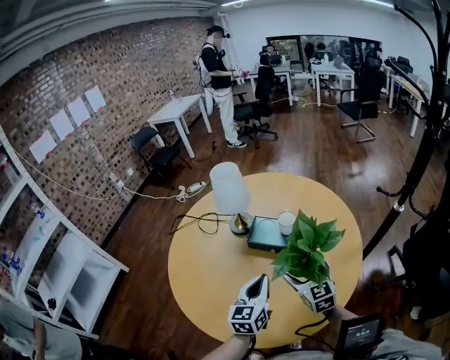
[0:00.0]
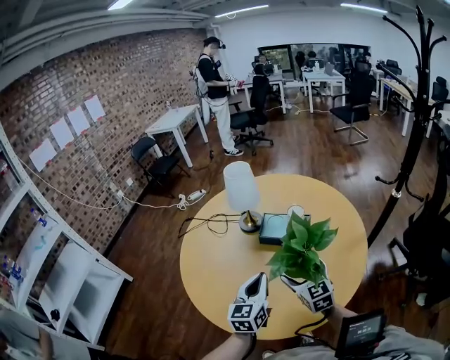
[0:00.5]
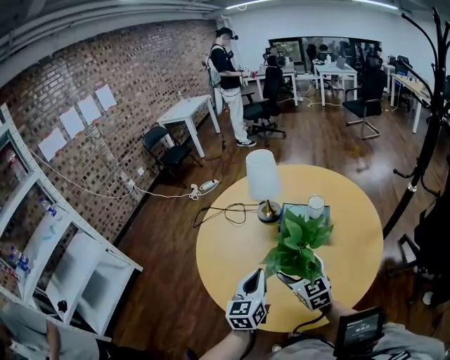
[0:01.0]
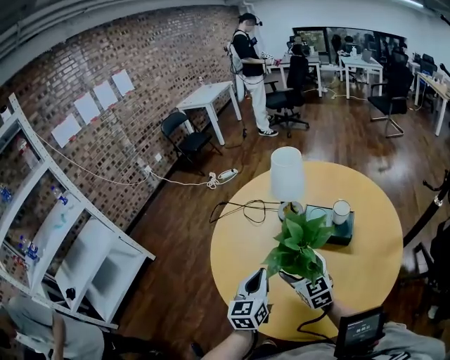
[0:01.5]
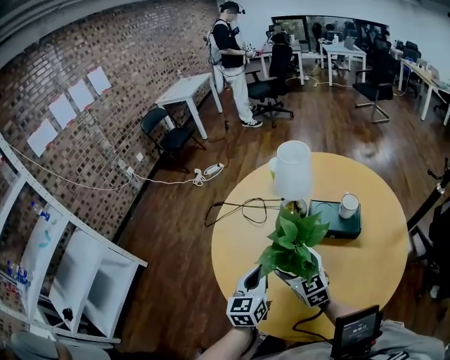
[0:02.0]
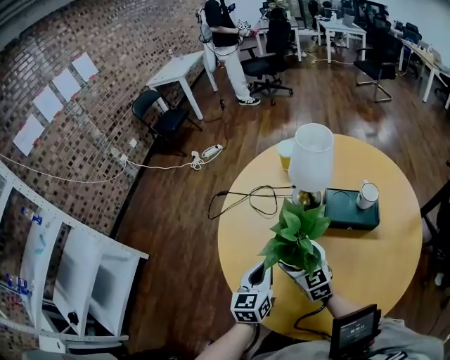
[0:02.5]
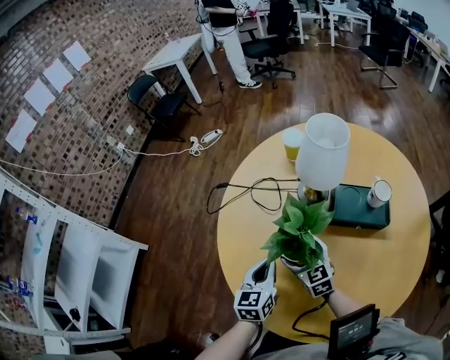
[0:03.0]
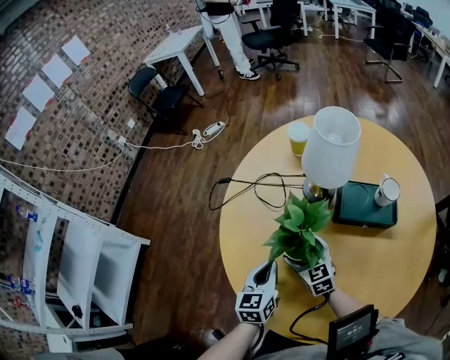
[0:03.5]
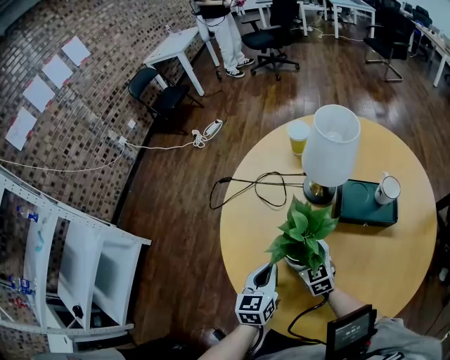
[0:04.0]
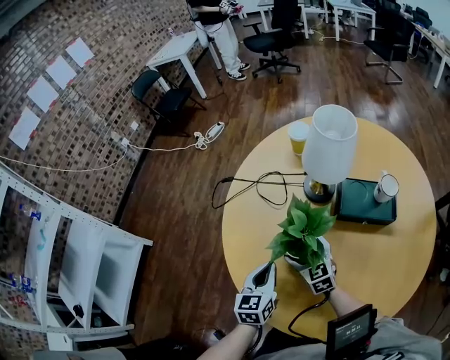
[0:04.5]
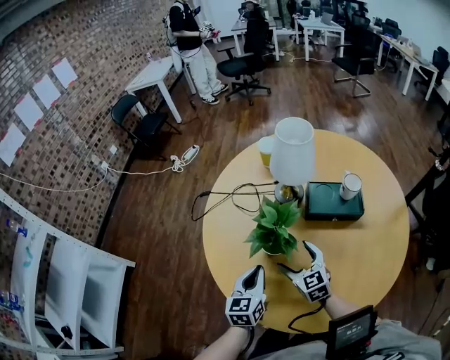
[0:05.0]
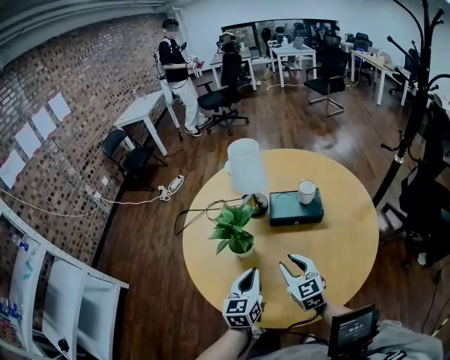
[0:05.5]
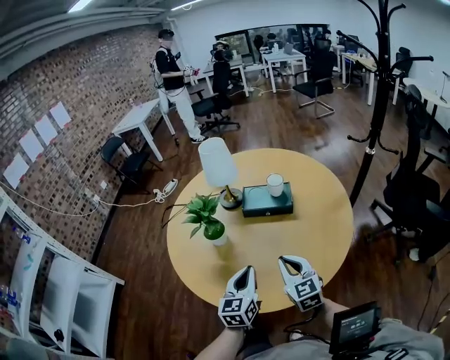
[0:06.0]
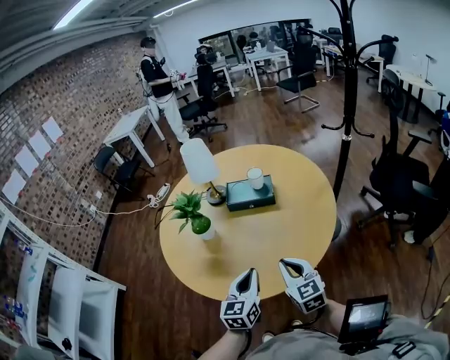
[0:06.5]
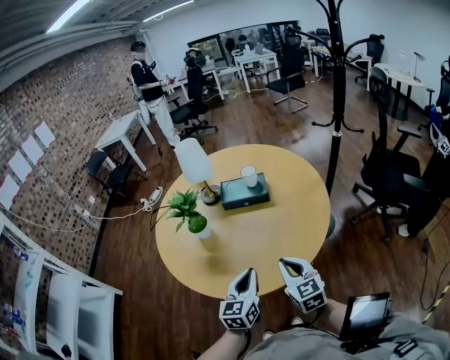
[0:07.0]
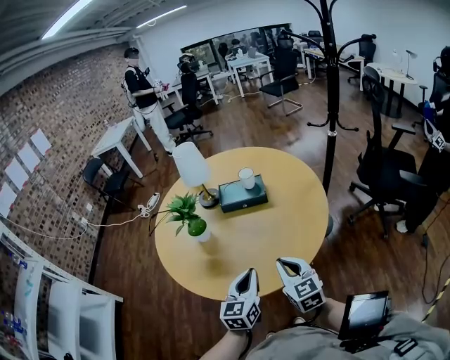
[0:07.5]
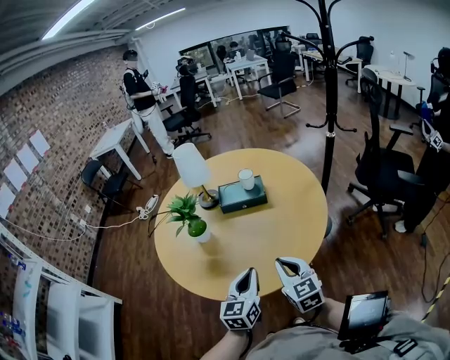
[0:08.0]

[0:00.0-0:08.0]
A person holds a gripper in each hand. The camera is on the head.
0:00.0 to 0:02.0: Both grippers travel together to the left, roughly 30 cm.
0:02.0 to 0:04.0: The right gripper shifts about 20 cm downward, forward and to the left. Meanwhile the left gripper shifts approximately 15 cm downward, to the left and forward.
0:04.0 to 0:06.0: The left gripper is displaced to the right, backward and upward by approximately 30 cm. Meanwhile the right gripper heads backward, to the right and upward, covering some 40 cm, and closes its fingers.
0:06.0 to 0:08.0: Both grippers move backward, about 10 cm.

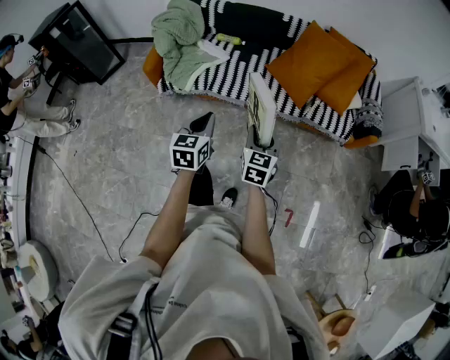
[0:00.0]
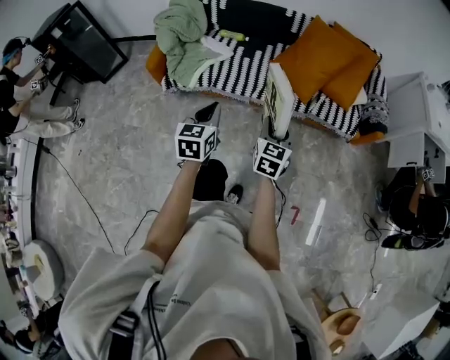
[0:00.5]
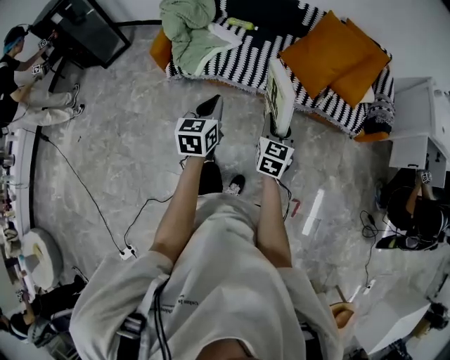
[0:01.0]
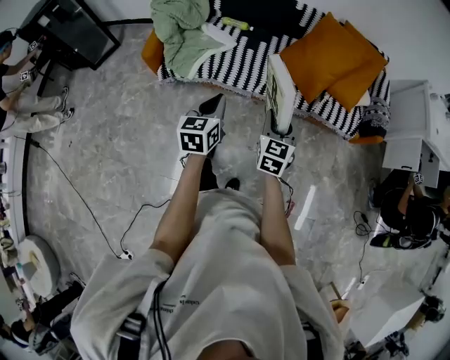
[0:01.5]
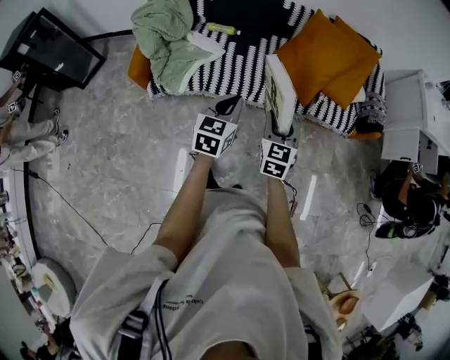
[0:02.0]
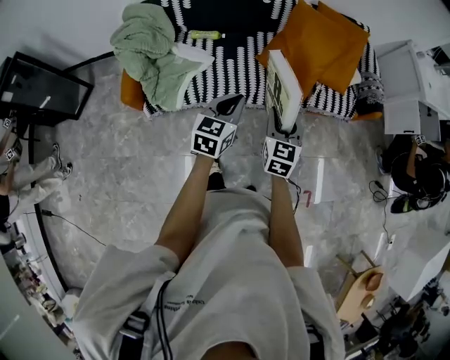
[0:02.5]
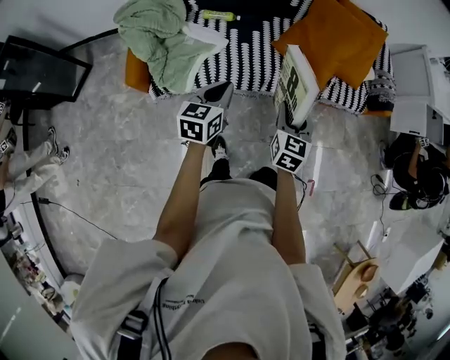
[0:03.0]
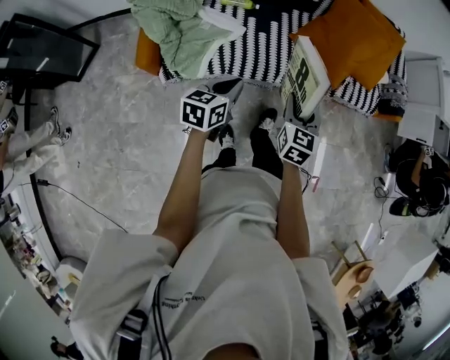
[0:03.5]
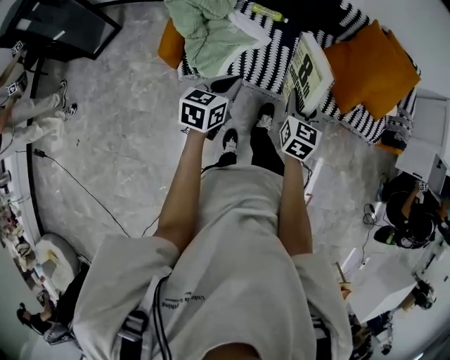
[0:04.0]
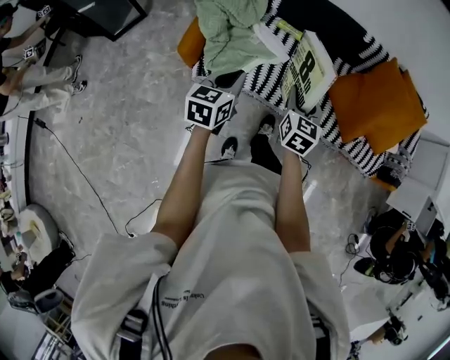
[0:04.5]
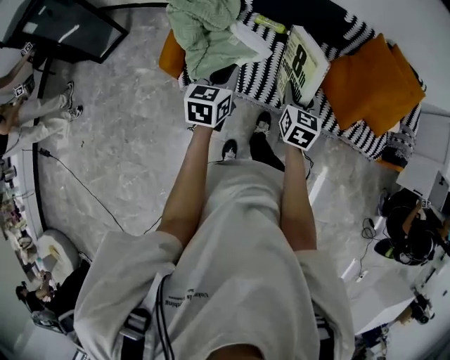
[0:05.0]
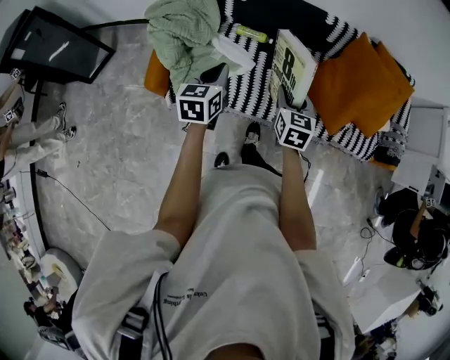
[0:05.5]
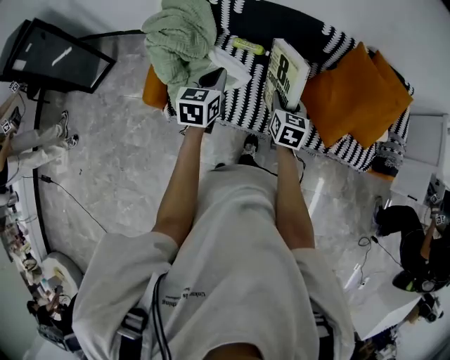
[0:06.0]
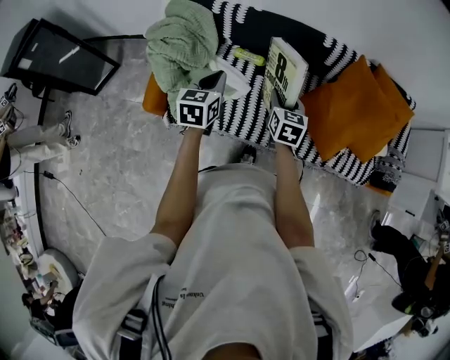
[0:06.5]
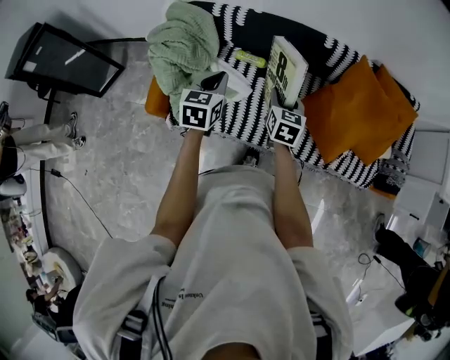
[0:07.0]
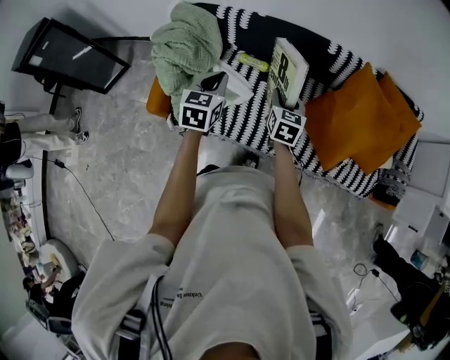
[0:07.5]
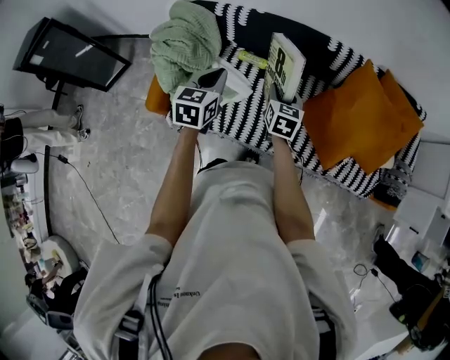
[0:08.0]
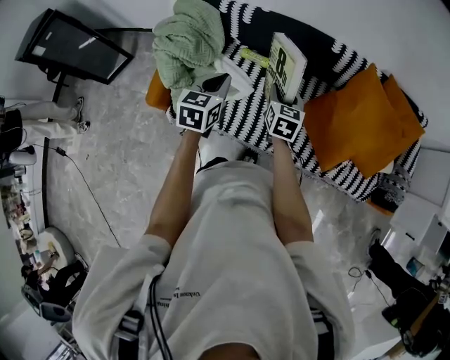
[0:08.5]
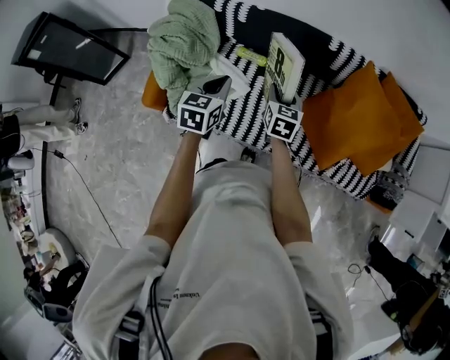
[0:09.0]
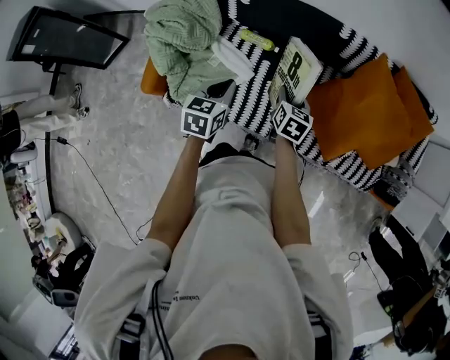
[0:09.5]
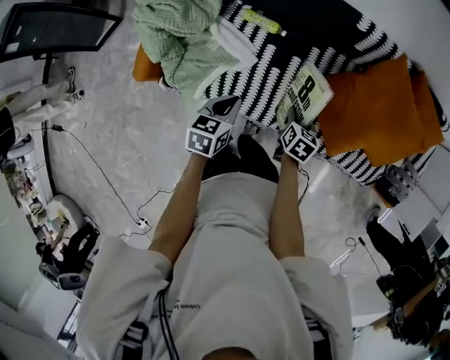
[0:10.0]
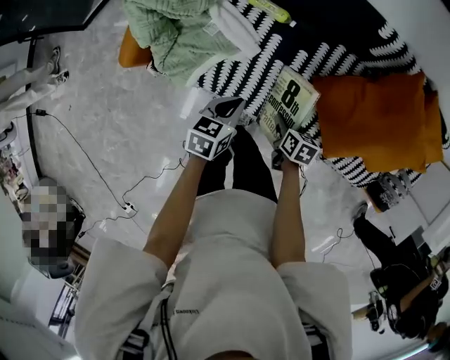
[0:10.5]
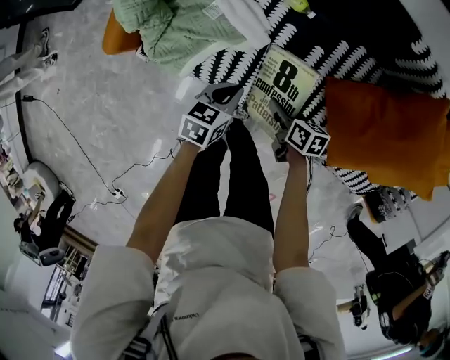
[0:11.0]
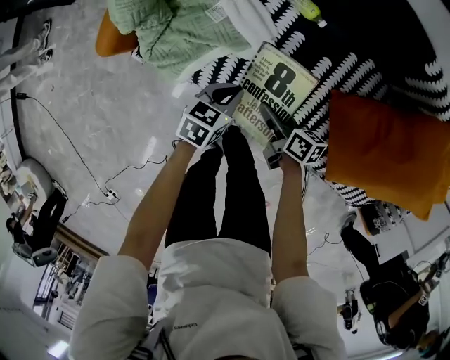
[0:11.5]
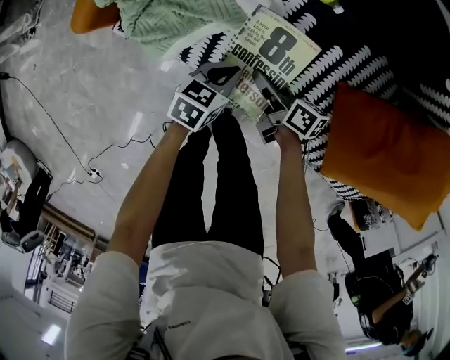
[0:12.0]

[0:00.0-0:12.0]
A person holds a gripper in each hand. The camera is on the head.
0:00.0 to 0:02.0: The grippers both shift forward by approximately 15 cm.
0:02.0 to 0:04.0: Both grippers move to the left, roughly 20 cm.
0:04.0 to 0:06.0: Both grippers move forward, some 20 cm.
0:06.0 to 0:08.0: The left gripper is displaced forward and to the right by about 10 cm. The right gripper shifts about 10 cm forward.
0:08.0 to 0:10.0: The grippers both shift downward and to the right by about 20 cm. The right gripper changes its angle by about 30 degrees; the left gripper rotates about 20 degrees.
0:10.0 to 0:12.0: Both grippers travel together downward, about 25 cm. The right gripper turns by some 50 degrees.

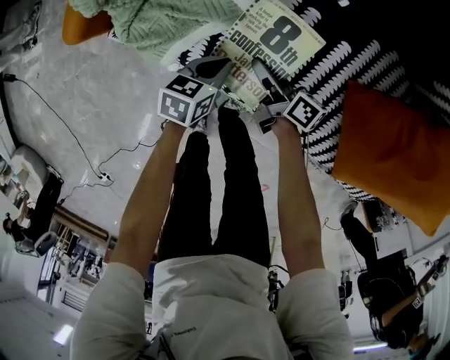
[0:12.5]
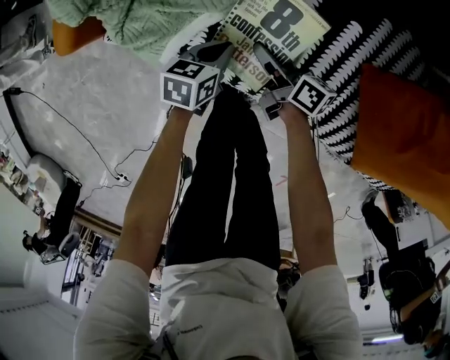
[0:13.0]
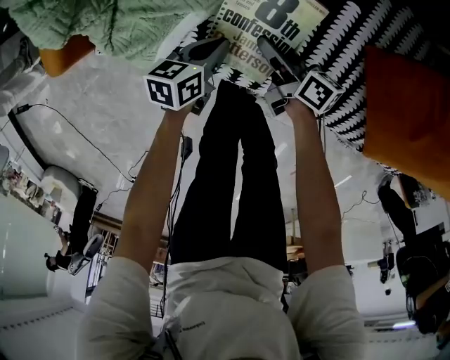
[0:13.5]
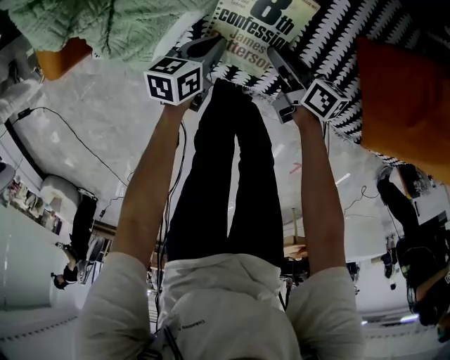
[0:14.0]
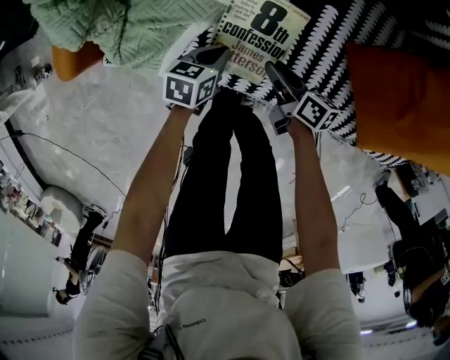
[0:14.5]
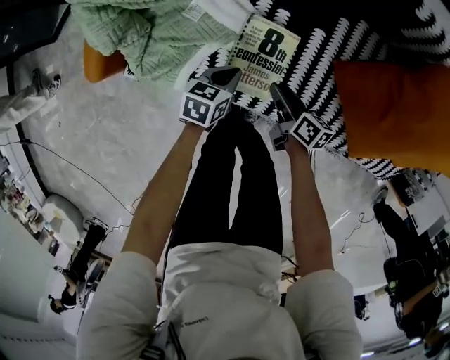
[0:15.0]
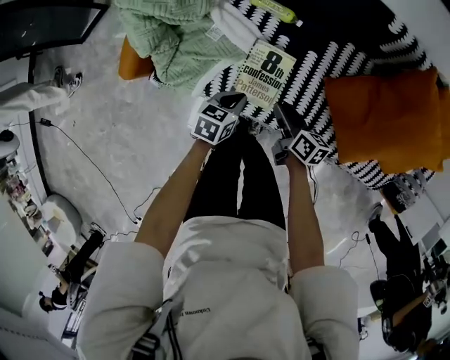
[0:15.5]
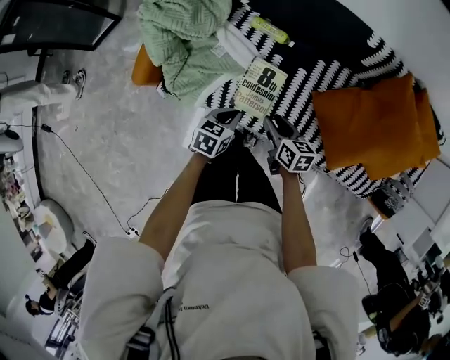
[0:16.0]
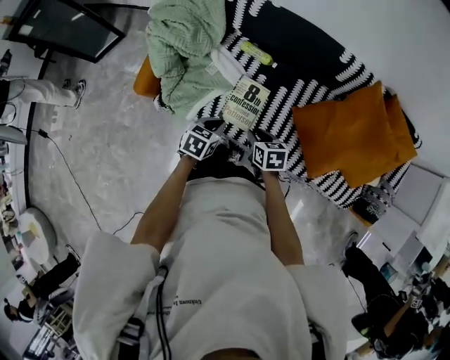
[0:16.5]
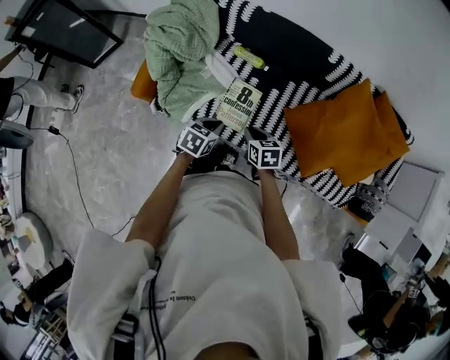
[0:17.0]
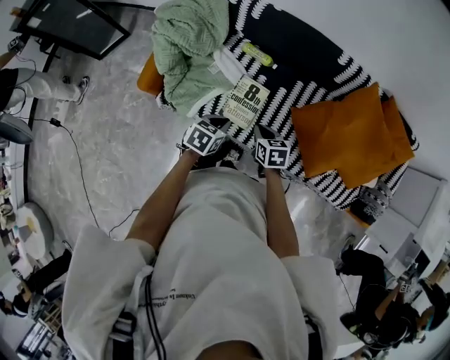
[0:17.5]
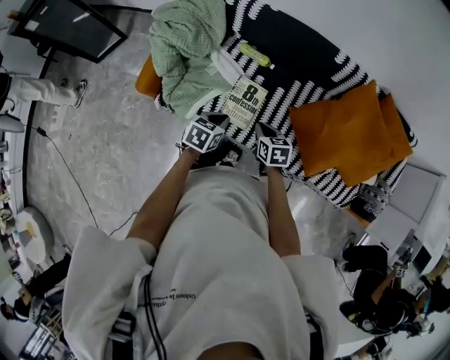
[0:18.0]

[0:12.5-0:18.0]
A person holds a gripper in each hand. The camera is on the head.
0:12.5 to 0:14.5: The right gripper heads to the right, covering some 5 cm.
0:14.5 to 0:16.0: The grippers both shift upward by roughly 25 cm. The right gripper swivels approximately 30 degrees.
0:16.0 to 0:18.0: The left gripper moves upward, about 10 cm. Meanwhile the right gripper travels upward by roughly 5 cm, and closes.

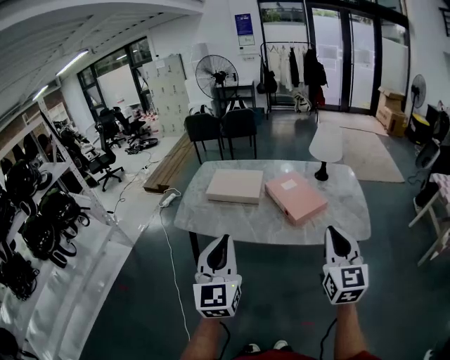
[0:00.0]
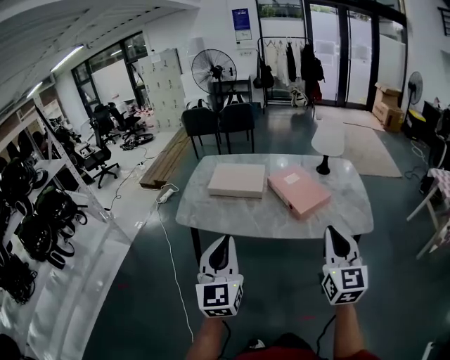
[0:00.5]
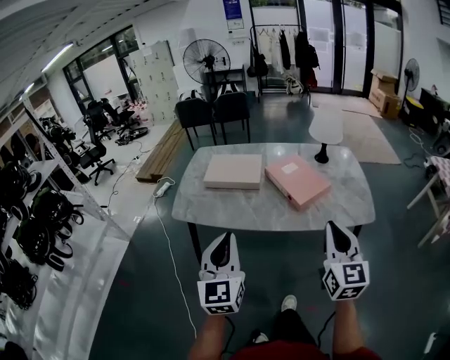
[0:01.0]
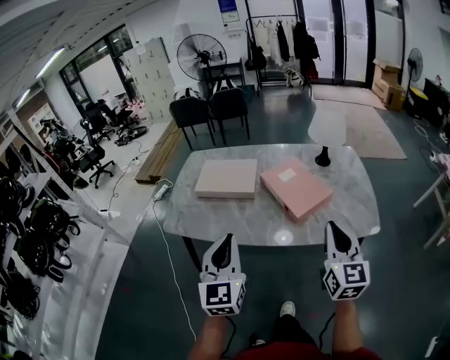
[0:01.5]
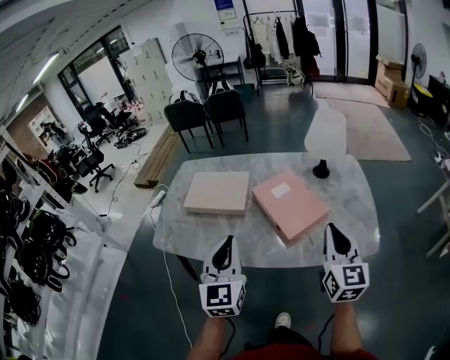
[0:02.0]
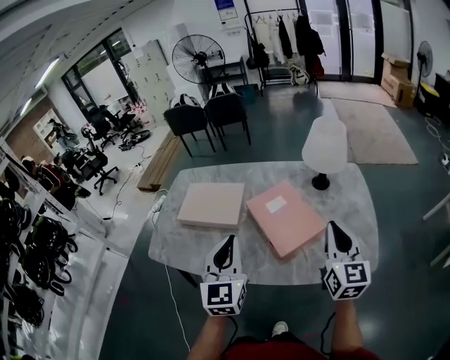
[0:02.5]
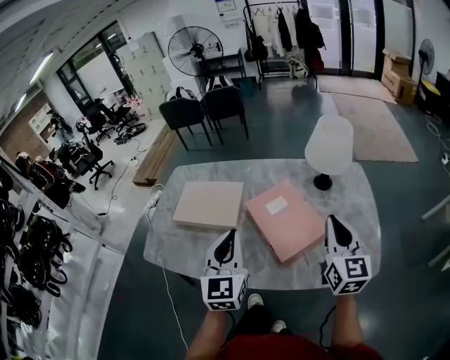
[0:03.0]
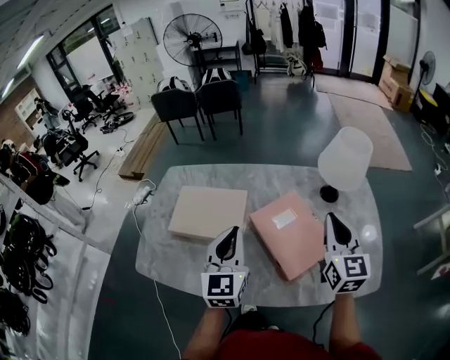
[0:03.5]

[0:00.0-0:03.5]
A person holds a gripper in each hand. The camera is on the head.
0:00.0 to 0:02.0: The two grippers go roughly 25 cm forward.
0:02.0 to 0:03.5: Both grippers travel together forward, approximately 25 cm.
